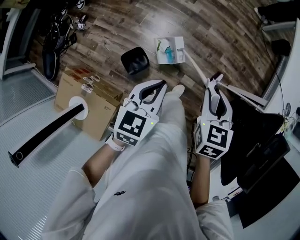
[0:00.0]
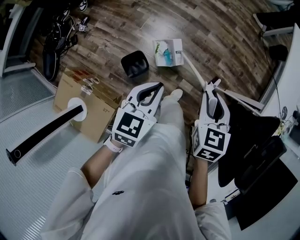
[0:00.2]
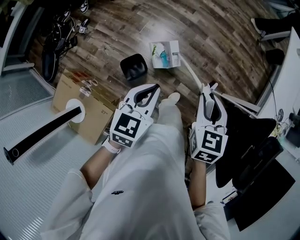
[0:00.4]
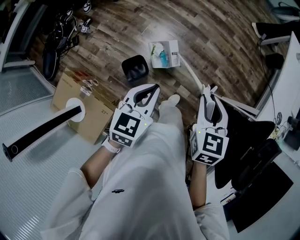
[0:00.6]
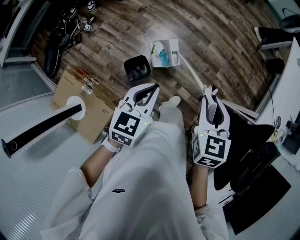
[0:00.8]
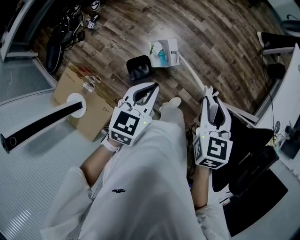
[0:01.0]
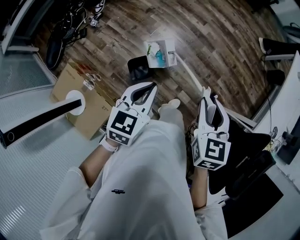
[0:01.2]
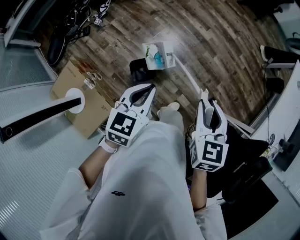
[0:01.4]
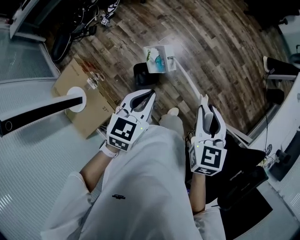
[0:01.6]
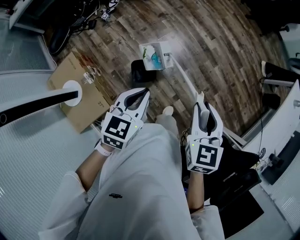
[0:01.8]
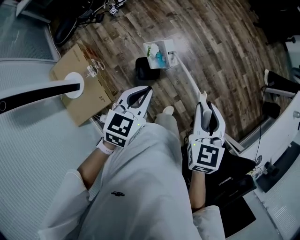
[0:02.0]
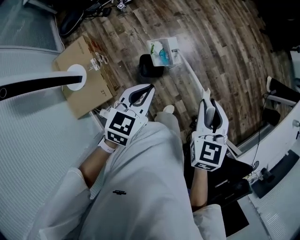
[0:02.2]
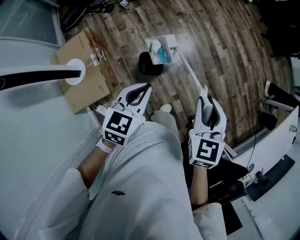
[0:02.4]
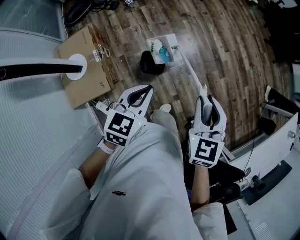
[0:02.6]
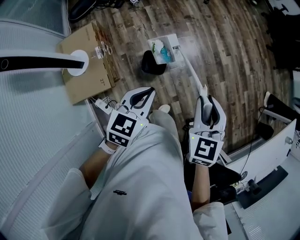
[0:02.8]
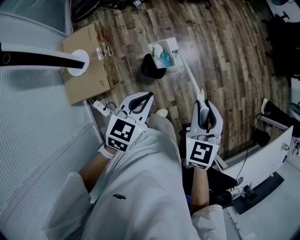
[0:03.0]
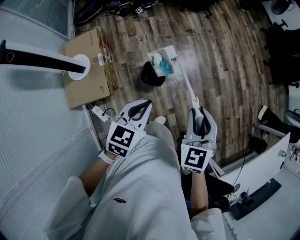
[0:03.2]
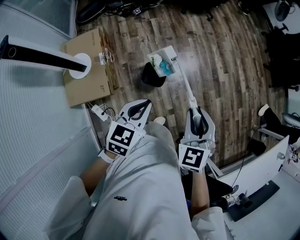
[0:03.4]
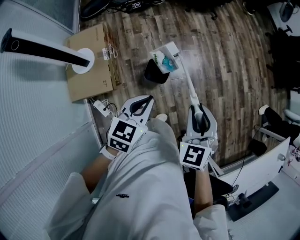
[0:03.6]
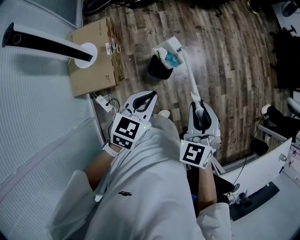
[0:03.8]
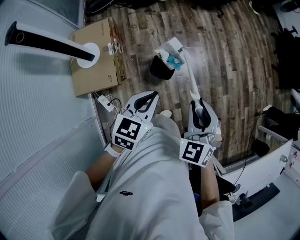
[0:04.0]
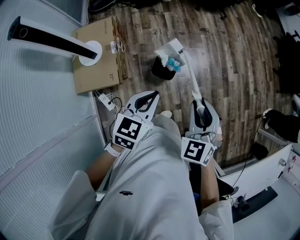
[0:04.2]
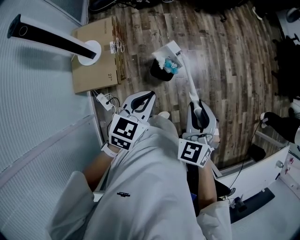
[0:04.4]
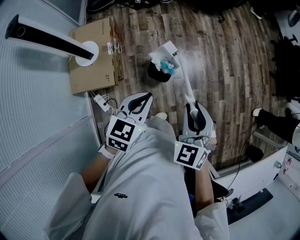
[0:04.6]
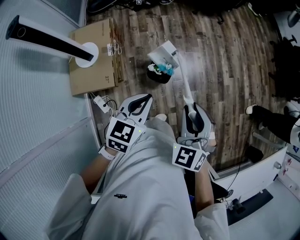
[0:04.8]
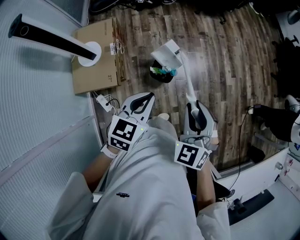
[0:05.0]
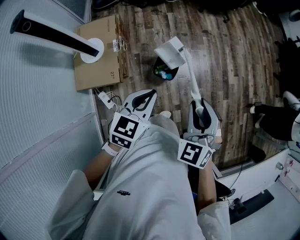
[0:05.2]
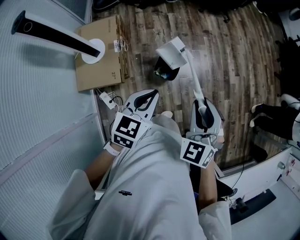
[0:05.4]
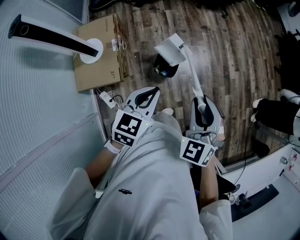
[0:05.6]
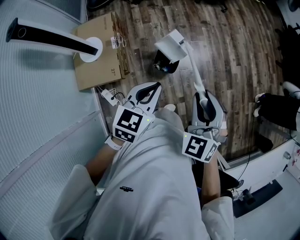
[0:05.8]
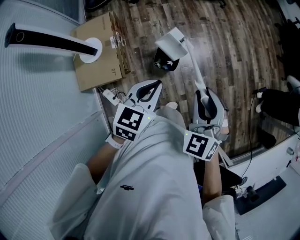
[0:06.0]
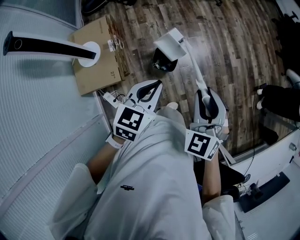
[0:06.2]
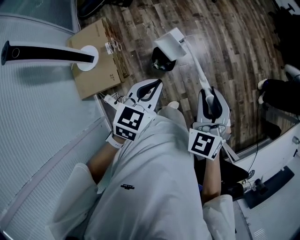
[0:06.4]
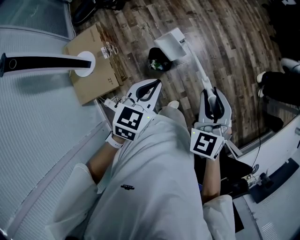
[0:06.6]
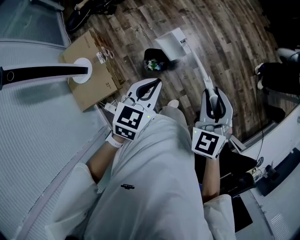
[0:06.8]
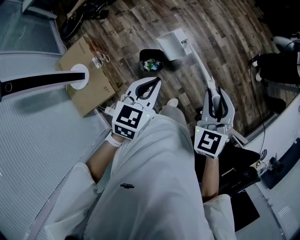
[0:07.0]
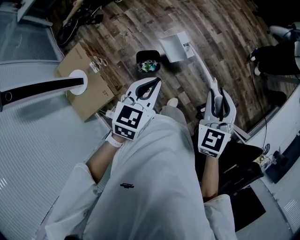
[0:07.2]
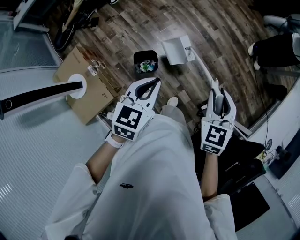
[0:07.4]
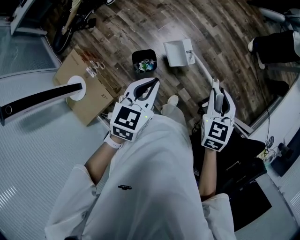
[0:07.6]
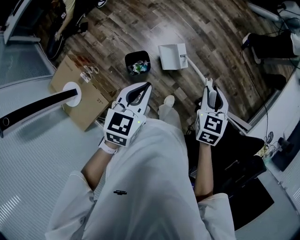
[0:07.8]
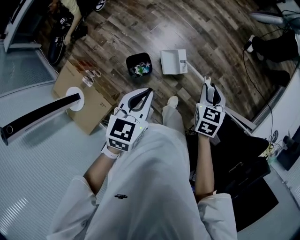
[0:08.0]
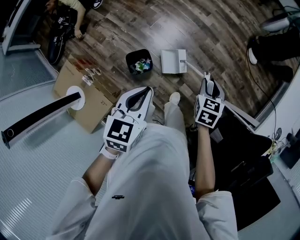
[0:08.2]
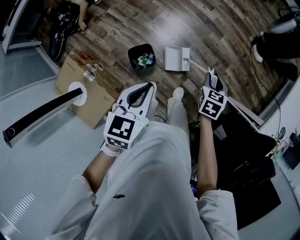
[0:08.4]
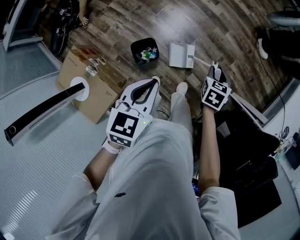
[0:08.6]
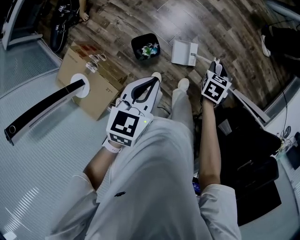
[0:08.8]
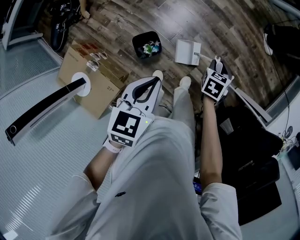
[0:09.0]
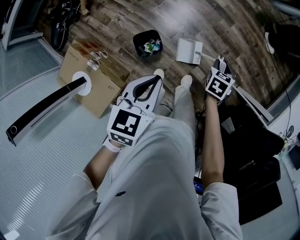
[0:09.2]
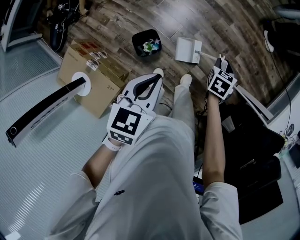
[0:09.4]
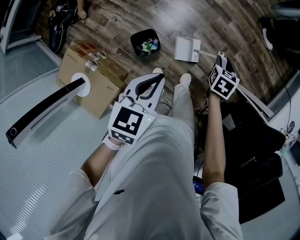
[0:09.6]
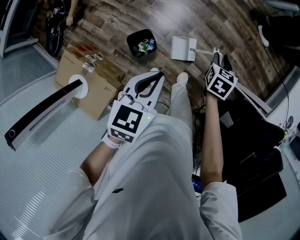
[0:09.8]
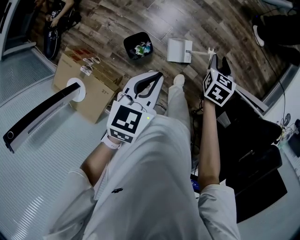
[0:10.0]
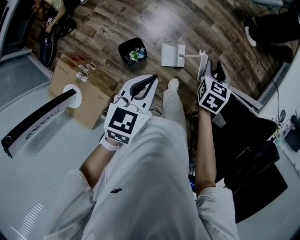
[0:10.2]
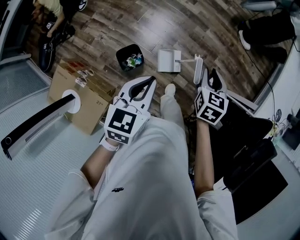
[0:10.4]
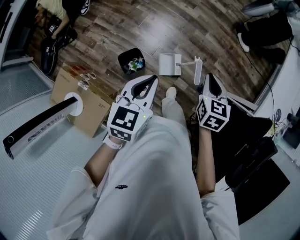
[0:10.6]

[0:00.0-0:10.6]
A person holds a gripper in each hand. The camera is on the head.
0:00.0 to 0:01.6: The left gripper moves to the left, roughly 15 cm, while the right gripper is displaced to the left and upward by approximately 15 cm, and swivels approximately 20 degrees.
0:01.6 to 0:03.0: The right gripper travels to the left by about 5 cm, and rotates approximately 30 degrees, while the left gripper moves backward, roughly 5 cm, and changes its angle by some 20 degrees.
0:03.0 to 0:04.6: The right gripper moves to the left, roughly 5 cm, and changes its angle by roughly 20 degrees.
0:04.6 to 0:06.0: The grippers make only small movements.
0:06.0 to 0:07.6: The right gripper ends up roughly 20 cm from where it was, and changes its angle by roughly 50 degrees, while the left gripper shifts by roughly 15 cm, and rotates about 30 degrees.
0:07.6 to 0:09.0: The left gripper is displaced downward by about 5 cm; the right gripper travels downward by roughly 25 cm, and changes its angle by approximately 30 degrees.
0:09.0 to 0:10.6: The left gripper shifts approximately 5 cm upward; the right gripper shifts some 20 cm upward, and closes its fingers.

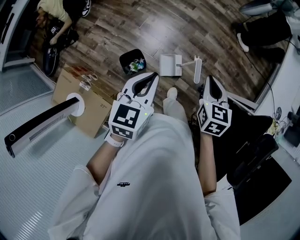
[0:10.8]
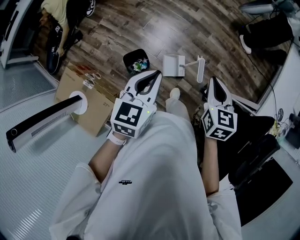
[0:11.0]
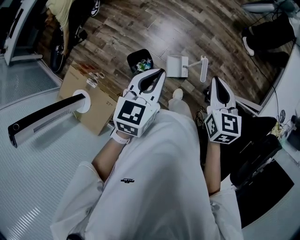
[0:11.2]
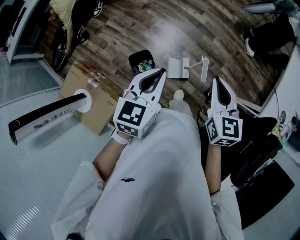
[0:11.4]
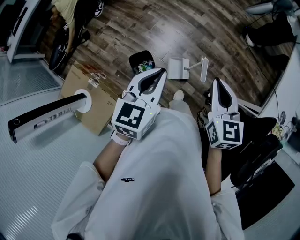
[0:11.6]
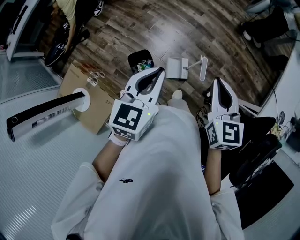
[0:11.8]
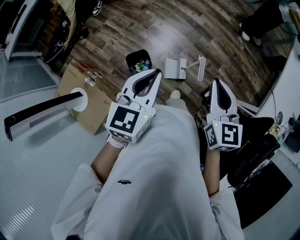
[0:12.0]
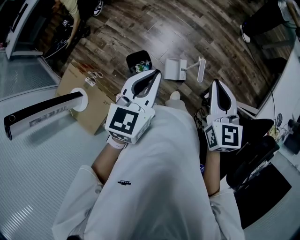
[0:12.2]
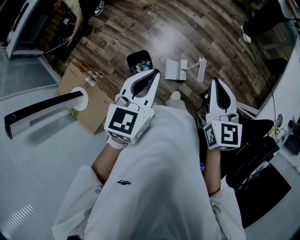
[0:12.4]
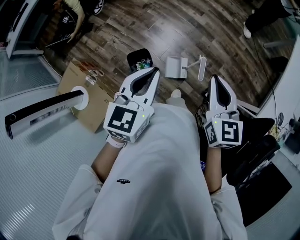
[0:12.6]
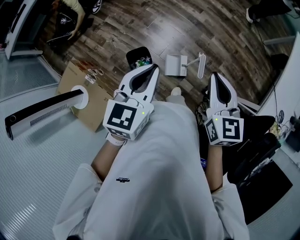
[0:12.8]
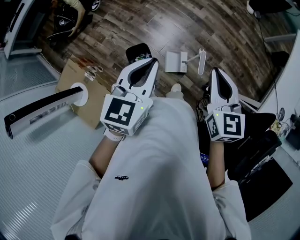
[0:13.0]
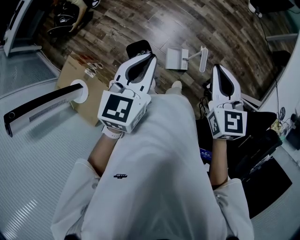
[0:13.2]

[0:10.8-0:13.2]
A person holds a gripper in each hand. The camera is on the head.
0:10.8 to 0:12.0: The right gripper shifts about 10 cm upward, and rotates approximately 20 degrees. Meanwhile the left gripper is displaced upward by roughly 5 cm.
0:12.0 to 0:13.2: The grippers stay close to where they were, moving slightly.

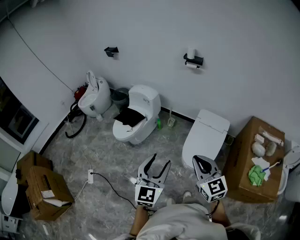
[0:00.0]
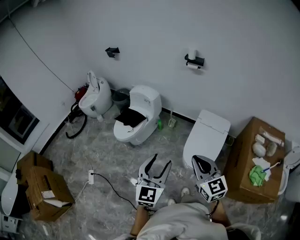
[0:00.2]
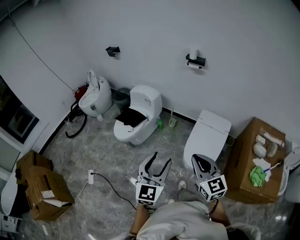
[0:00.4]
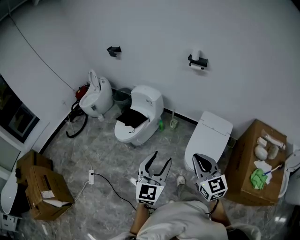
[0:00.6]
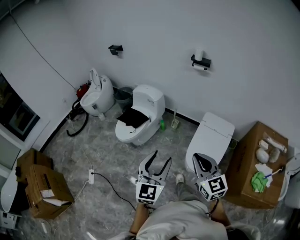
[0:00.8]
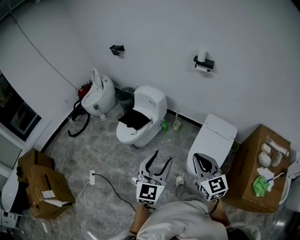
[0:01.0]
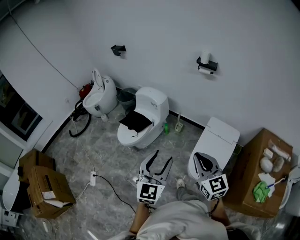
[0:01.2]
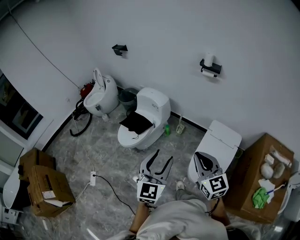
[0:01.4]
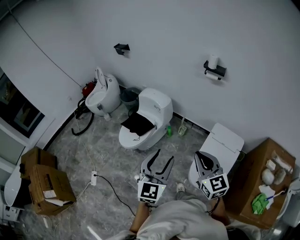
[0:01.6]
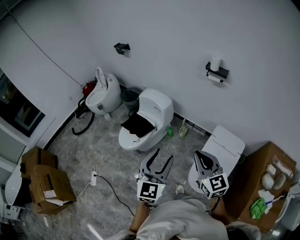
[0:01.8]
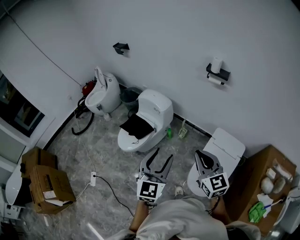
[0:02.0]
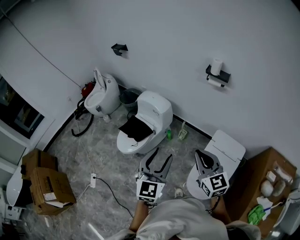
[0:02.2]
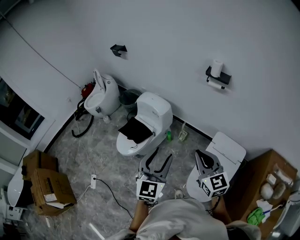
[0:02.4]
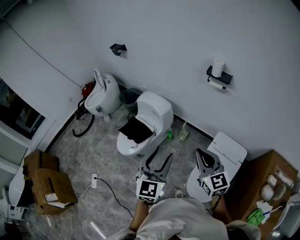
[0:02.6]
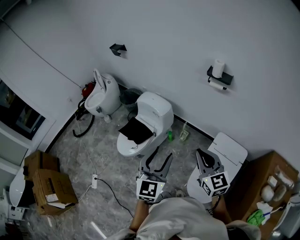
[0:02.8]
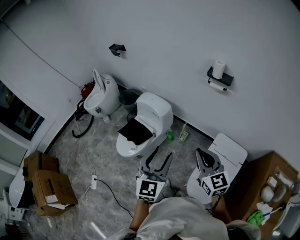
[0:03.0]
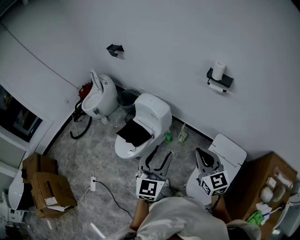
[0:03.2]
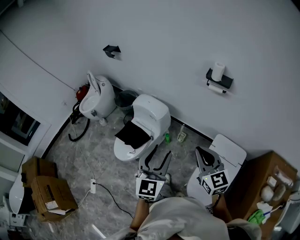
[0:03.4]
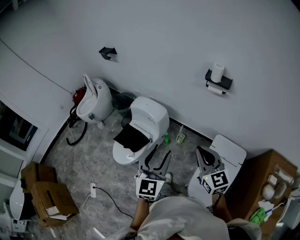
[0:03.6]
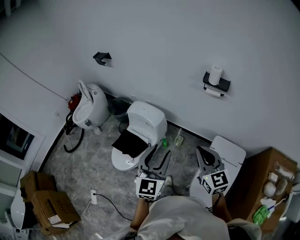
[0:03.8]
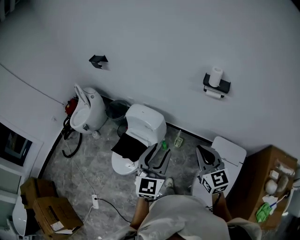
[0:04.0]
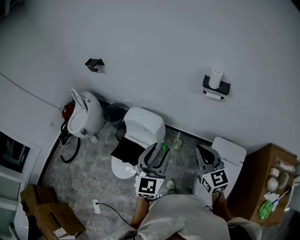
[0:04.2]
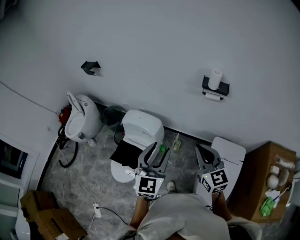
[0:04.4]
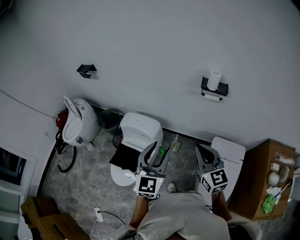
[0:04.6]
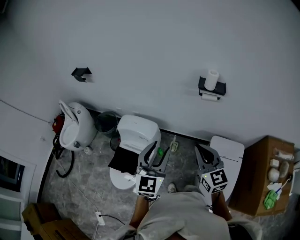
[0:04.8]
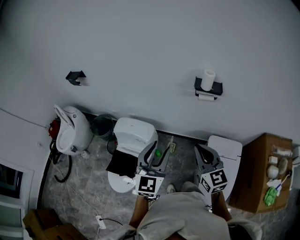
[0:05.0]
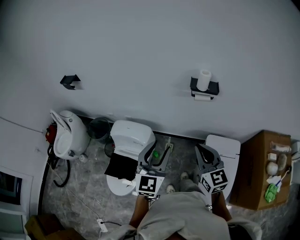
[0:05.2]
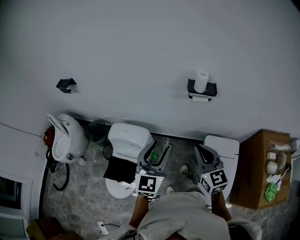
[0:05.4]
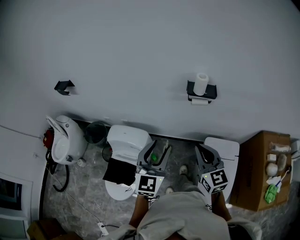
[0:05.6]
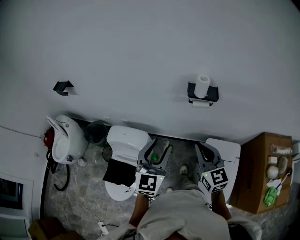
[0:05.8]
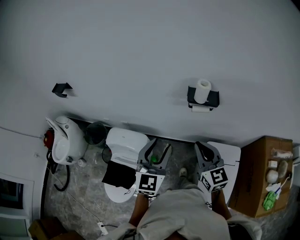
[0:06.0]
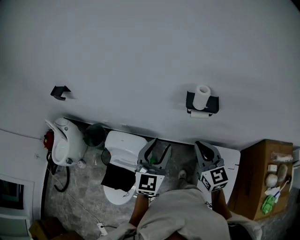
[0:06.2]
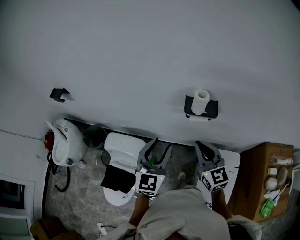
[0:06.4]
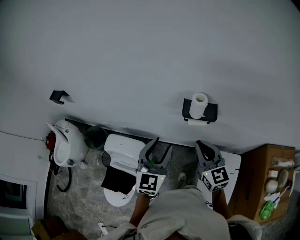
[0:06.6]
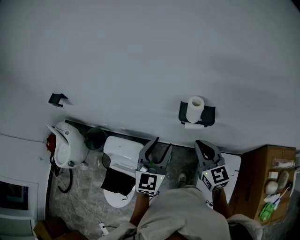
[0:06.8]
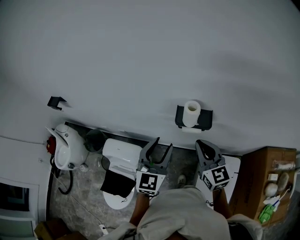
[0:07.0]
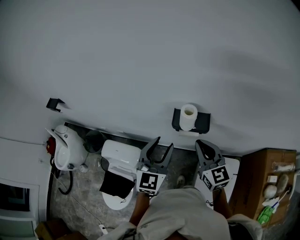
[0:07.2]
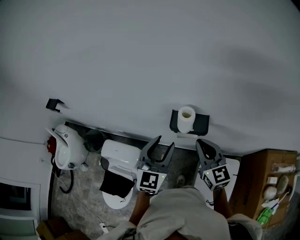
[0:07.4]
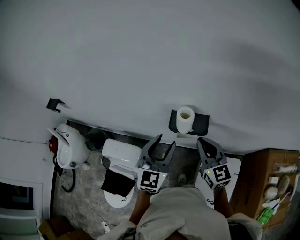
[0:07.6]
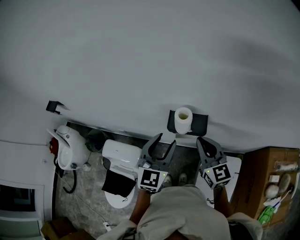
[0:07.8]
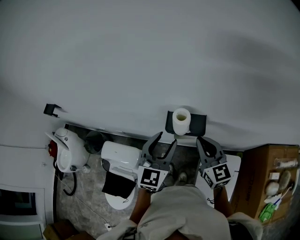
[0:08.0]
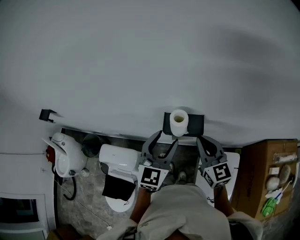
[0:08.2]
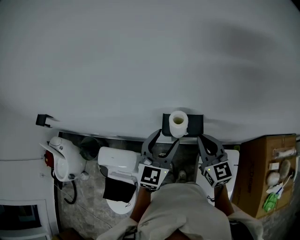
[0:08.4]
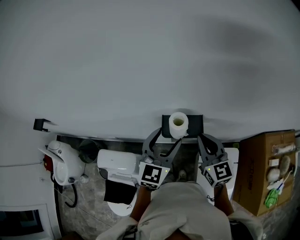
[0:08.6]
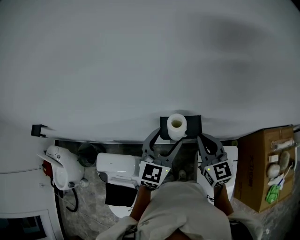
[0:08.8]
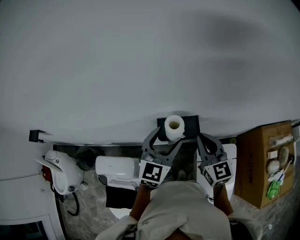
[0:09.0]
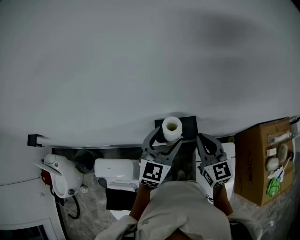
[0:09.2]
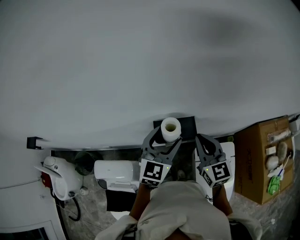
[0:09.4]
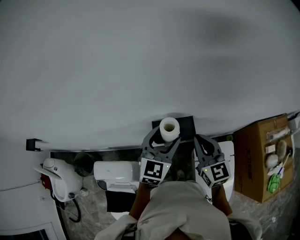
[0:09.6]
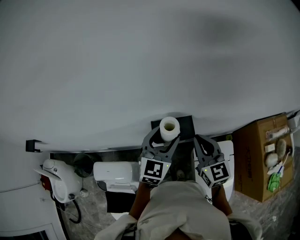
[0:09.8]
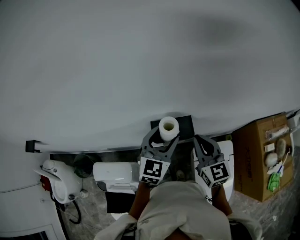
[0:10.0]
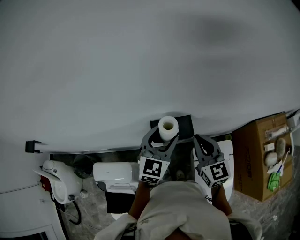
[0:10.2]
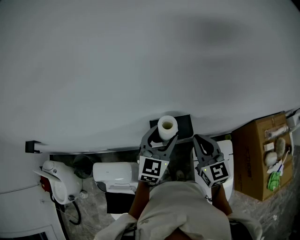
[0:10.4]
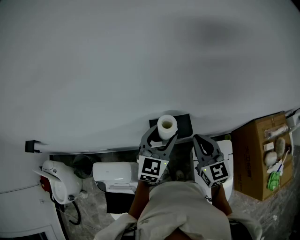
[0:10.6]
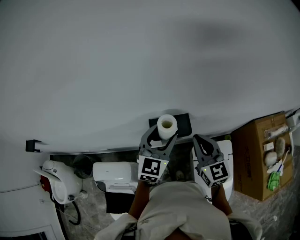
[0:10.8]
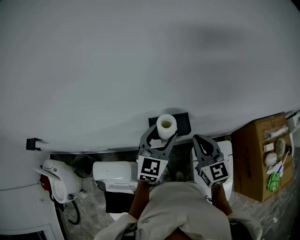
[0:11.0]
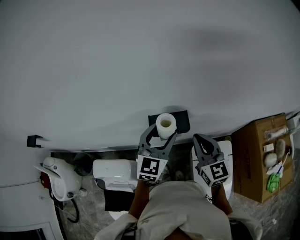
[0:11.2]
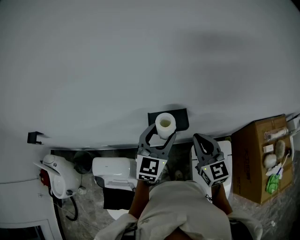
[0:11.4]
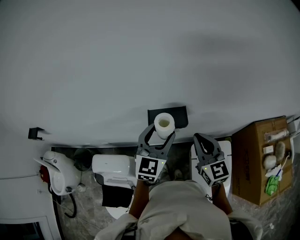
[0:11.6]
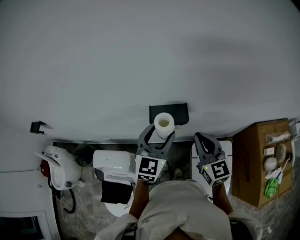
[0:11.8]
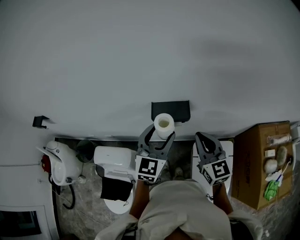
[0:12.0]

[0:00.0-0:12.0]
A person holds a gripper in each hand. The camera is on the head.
0:00.0 to 0:01.6: Both grippers move forward, some 20 cm.
0:01.6 to 0:03.0: Both grippers move forward, roughly 15 cm.
0:03.0 to 0:04.4: The two grippers go approximately 15 cm forward.
0:04.4 to 0:06.0: The two grippers go roughly 15 cm forward.
0:06.0 to 0:07.6: Both grippers travel together forward and to the right, about 20 cm.
0:07.6 to 0:09.0: The left gripper heads forward, covering about 5 cm, changes its angle by some 20 degrees, and opens its fingers.
0:09.0 to 0:10.4: The grippers stay close to where they were, moving slightly.
0:10.4 to 0:12.0: The two grippers go about 5 cm backward.
